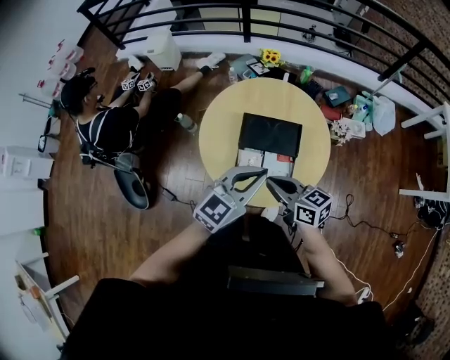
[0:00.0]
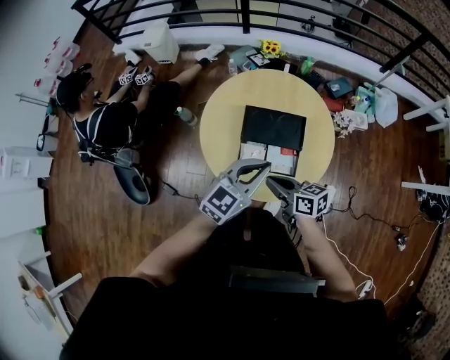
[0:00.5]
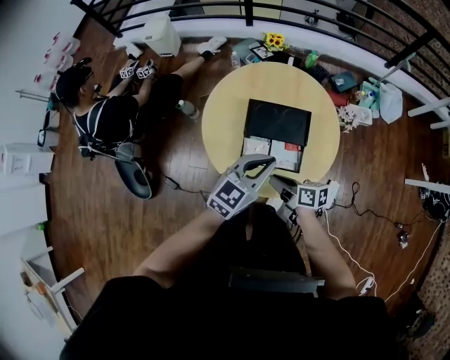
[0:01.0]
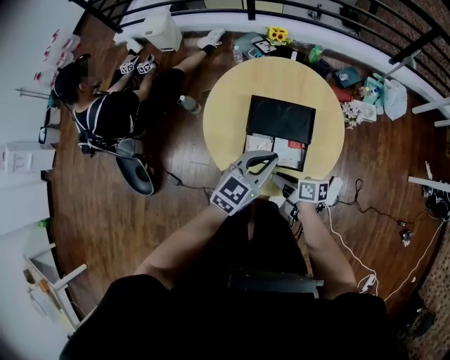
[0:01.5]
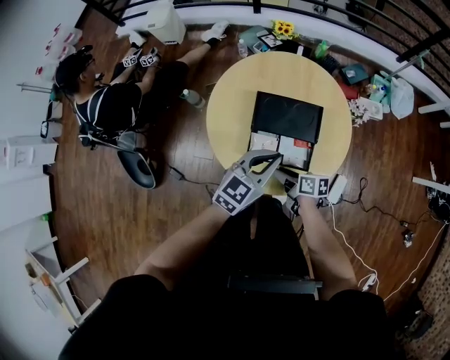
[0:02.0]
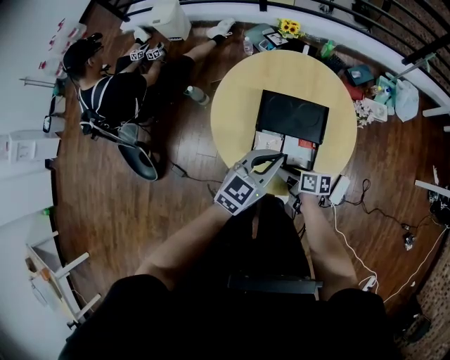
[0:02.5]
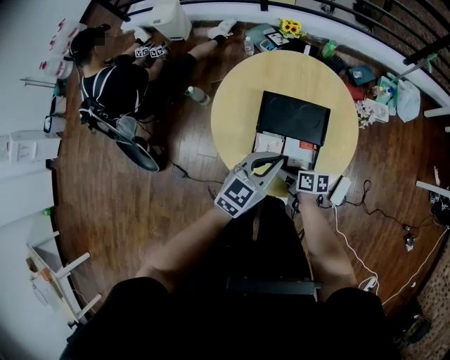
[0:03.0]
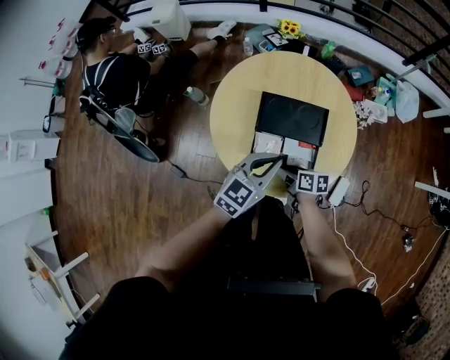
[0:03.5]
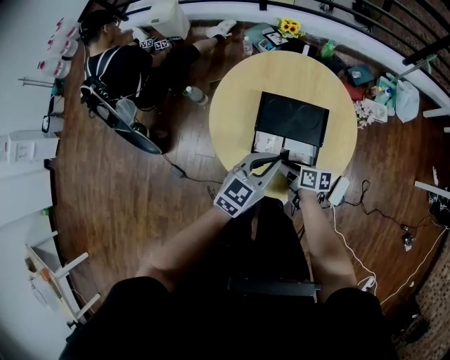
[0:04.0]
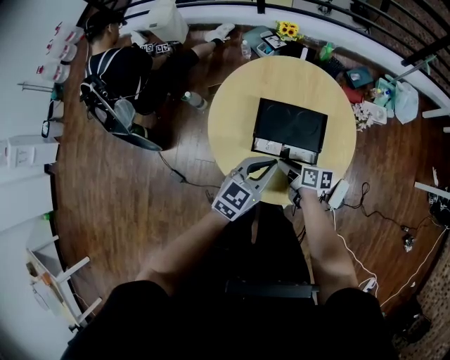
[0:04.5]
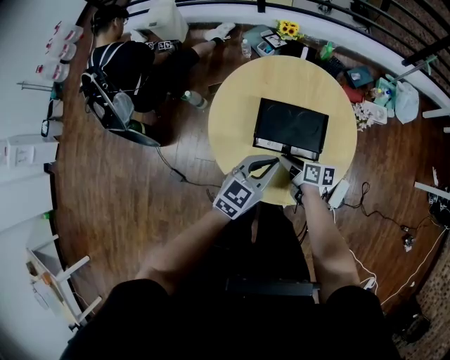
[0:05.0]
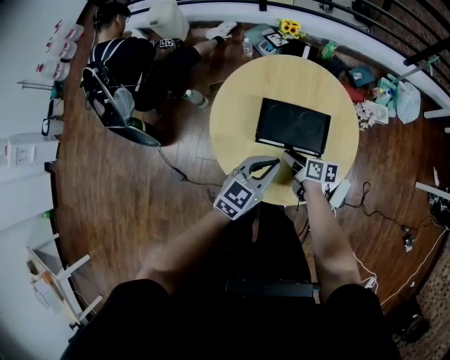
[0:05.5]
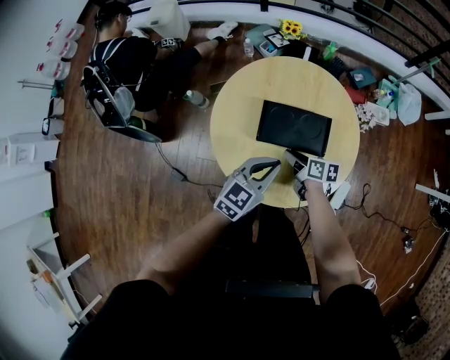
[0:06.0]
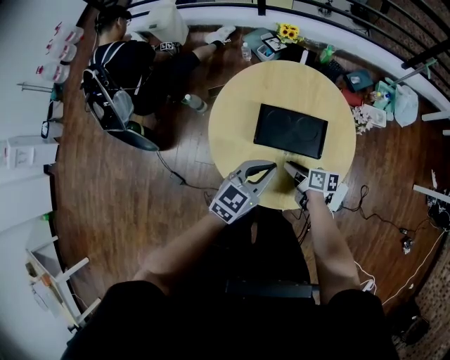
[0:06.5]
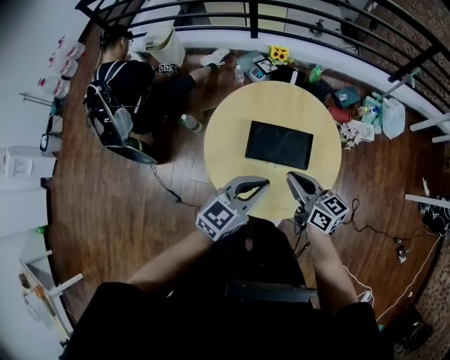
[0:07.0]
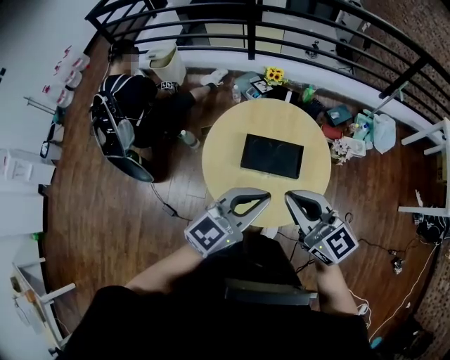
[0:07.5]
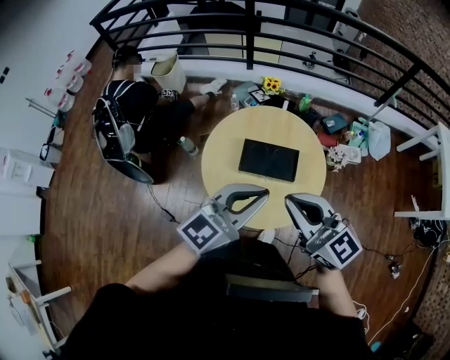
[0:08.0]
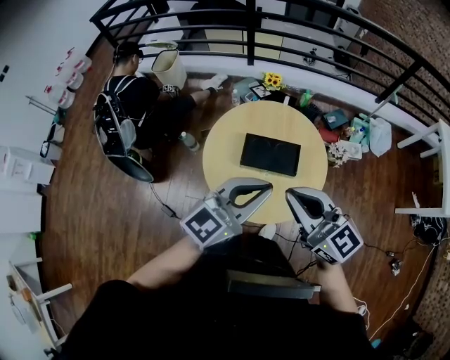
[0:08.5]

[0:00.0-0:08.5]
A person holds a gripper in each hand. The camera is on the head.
0:00.0 to 0:02.0: The left gripper is displaced downward by about 15 cm. The right gripper goes roughly 25 cm downward, changes its angle by roughly 40 degrees, and opens.
0:02.0 to 0:04.0: The right gripper moves some 5 cm.
0:04.0 to 0:06.5: The right gripper is displaced forward by some 5 cm.
0:06.5 to 0:08.5: The right gripper shifts approximately 50 cm upward, rotates around the line of its fingers by roughly 60 degrees, counterclockwise from behind, and closes; the left gripper moves upward and backward, approximately 35 cm, and swivels approximately 20 degrees.

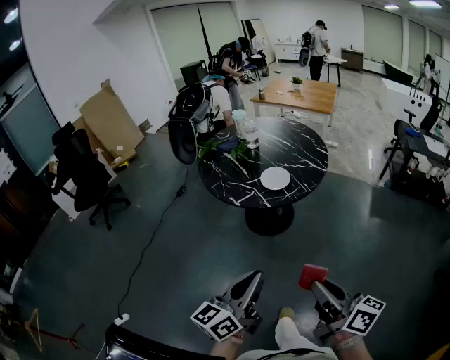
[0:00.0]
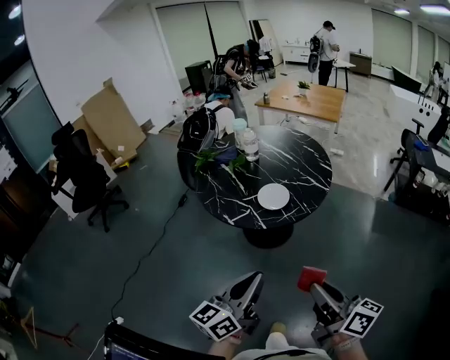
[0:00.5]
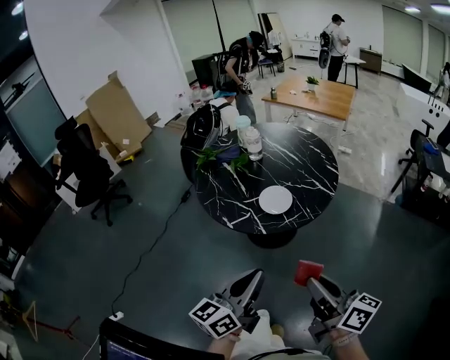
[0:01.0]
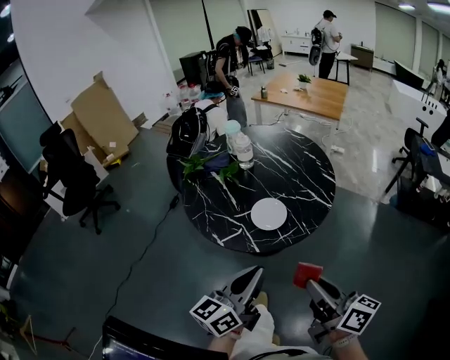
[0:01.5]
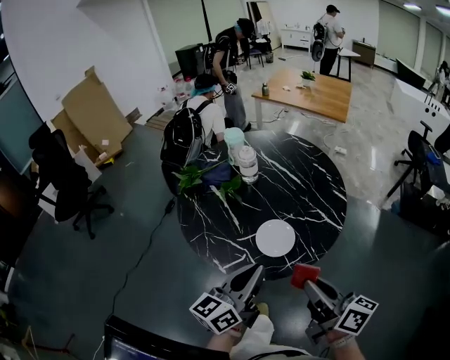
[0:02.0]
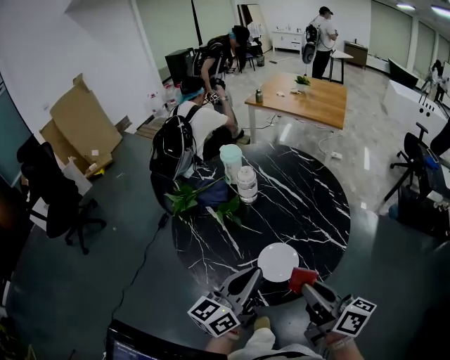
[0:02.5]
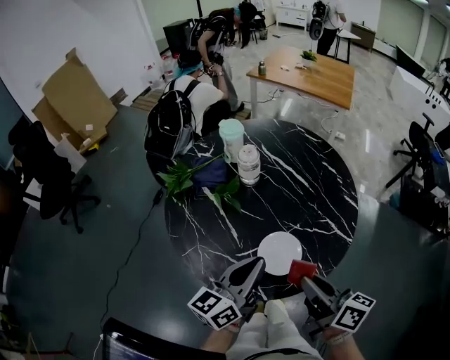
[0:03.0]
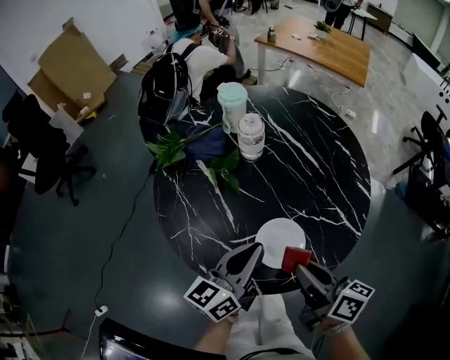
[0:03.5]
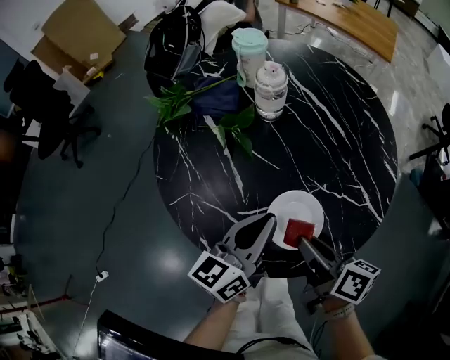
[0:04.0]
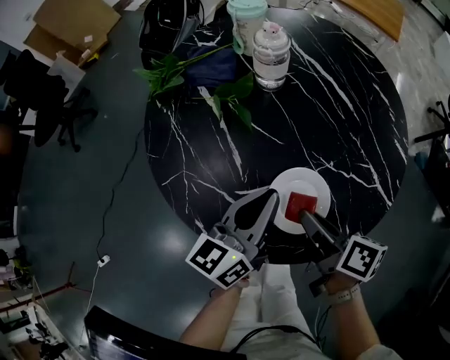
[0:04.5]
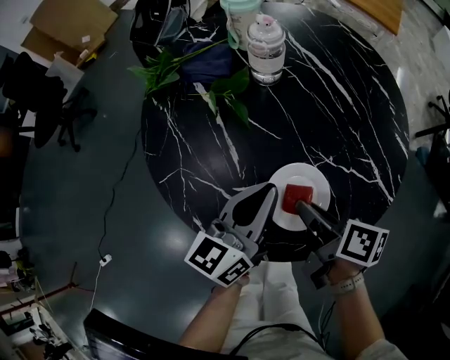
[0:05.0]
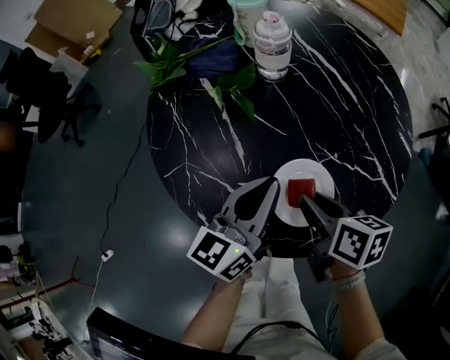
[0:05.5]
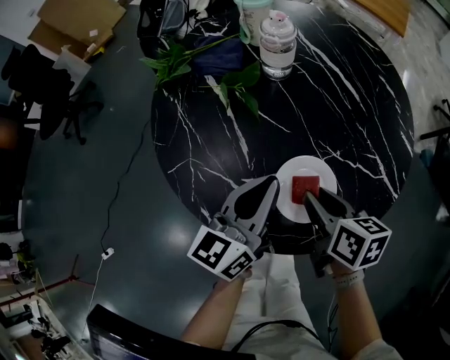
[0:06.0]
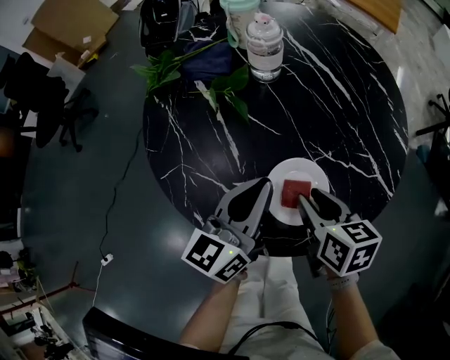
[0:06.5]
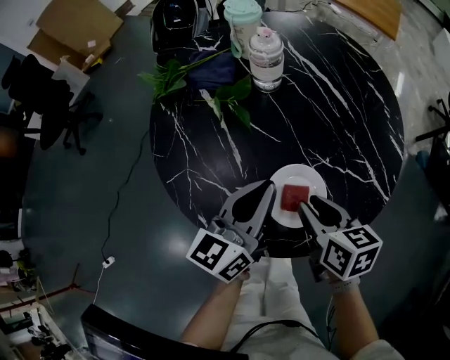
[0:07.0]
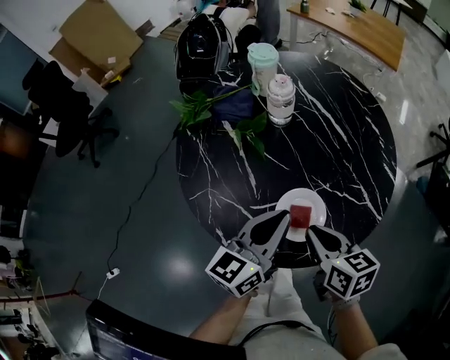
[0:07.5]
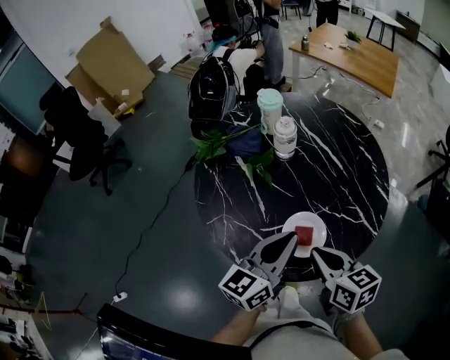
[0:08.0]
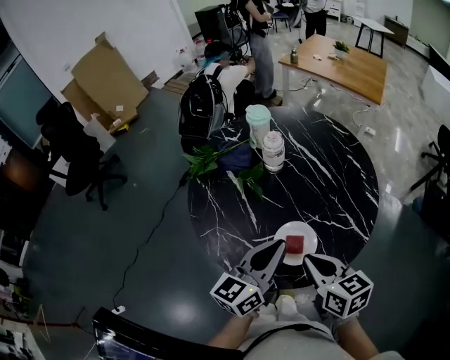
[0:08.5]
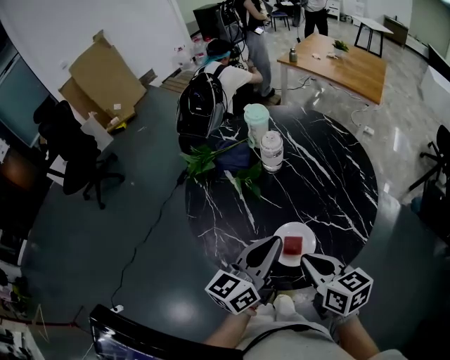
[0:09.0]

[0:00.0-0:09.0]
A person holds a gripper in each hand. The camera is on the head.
0:00.0 to 0:02.0: The grippers both shift forward by approximately 40 cm.
0:02.0 to 0:04.5: The right gripper travels downward and forward by about 30 cm, and turns by approximately 30 degrees. The left gripper shifts approximately 25 cm forward and downward.
0:04.5 to 0:07.0: The right gripper turns by some 30 degrees.
0:07.0 to 0:09.0: The two grippers go roughly 10 cm upward. The right gripper closes its fingers.

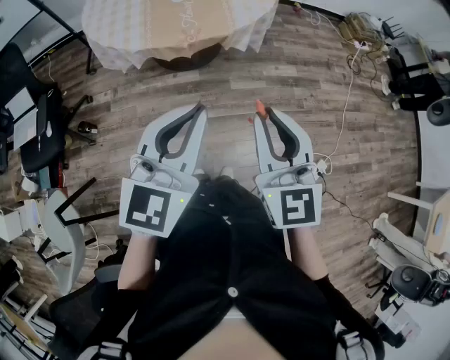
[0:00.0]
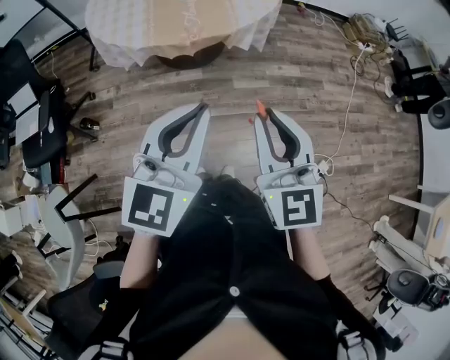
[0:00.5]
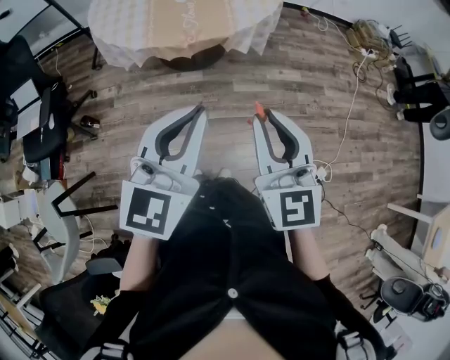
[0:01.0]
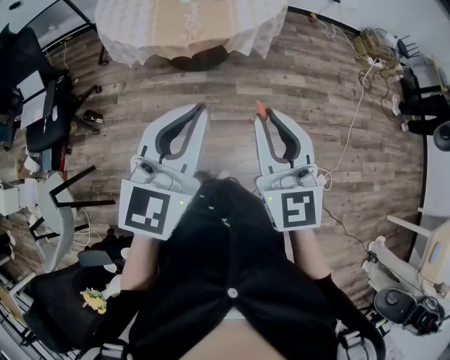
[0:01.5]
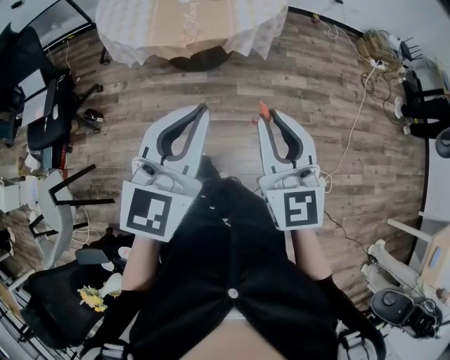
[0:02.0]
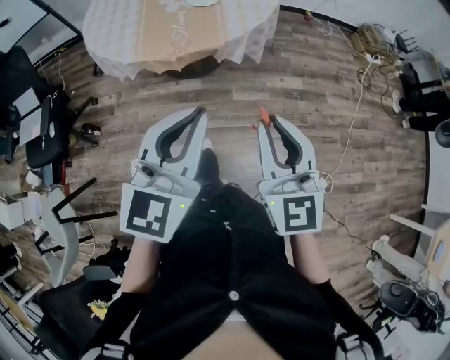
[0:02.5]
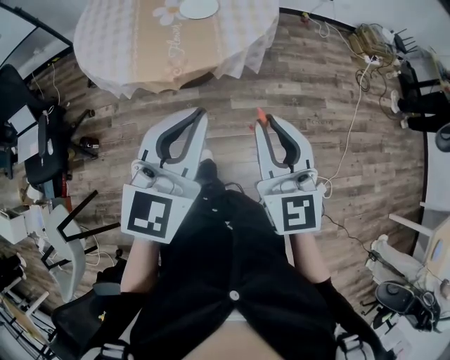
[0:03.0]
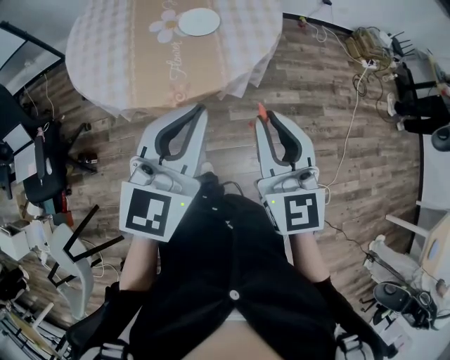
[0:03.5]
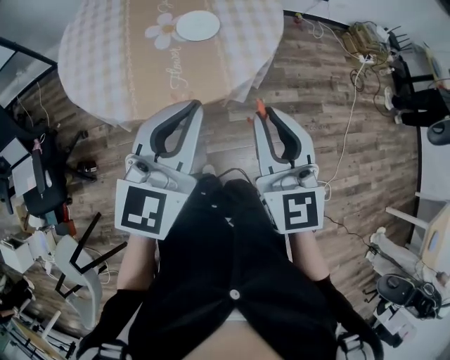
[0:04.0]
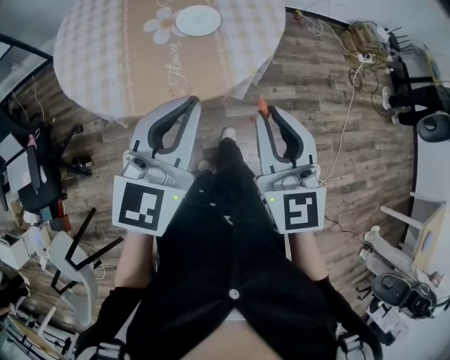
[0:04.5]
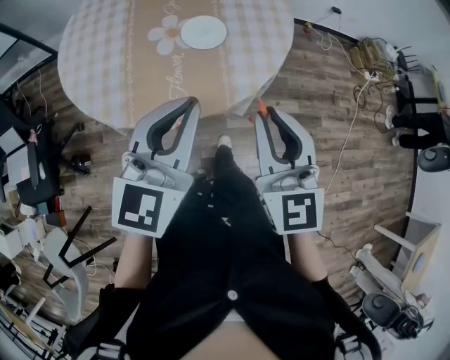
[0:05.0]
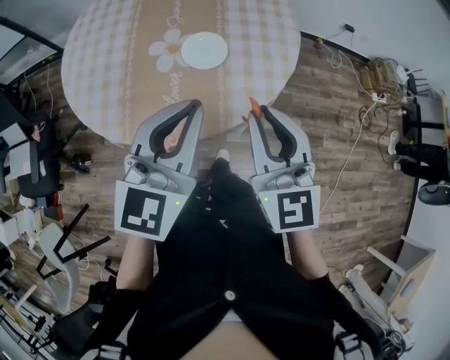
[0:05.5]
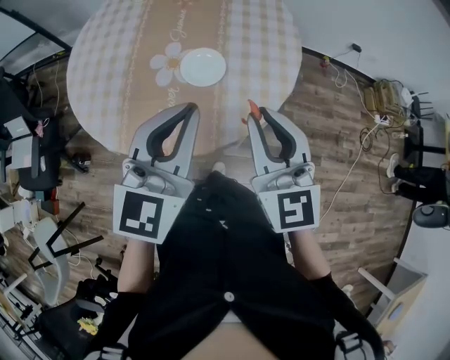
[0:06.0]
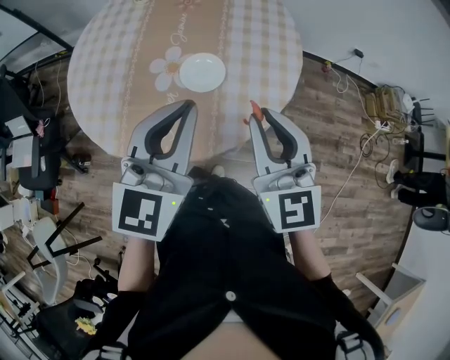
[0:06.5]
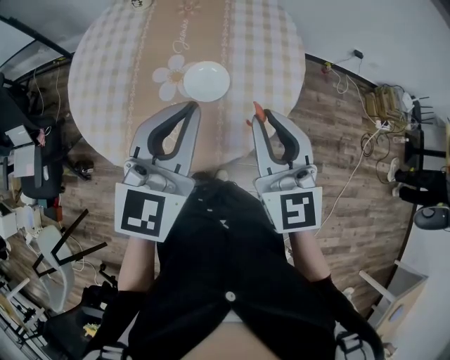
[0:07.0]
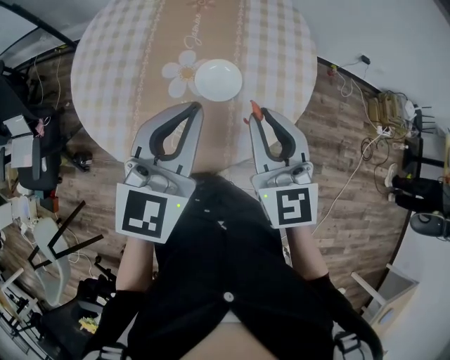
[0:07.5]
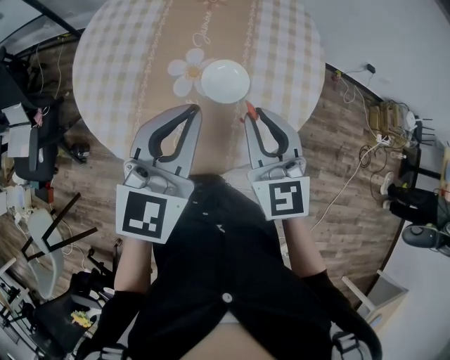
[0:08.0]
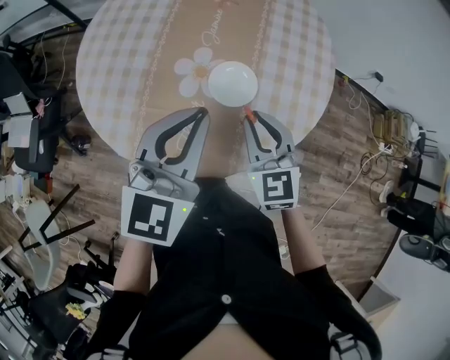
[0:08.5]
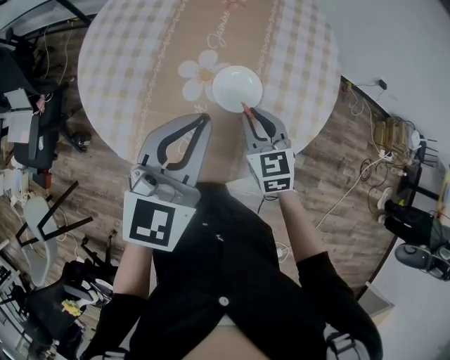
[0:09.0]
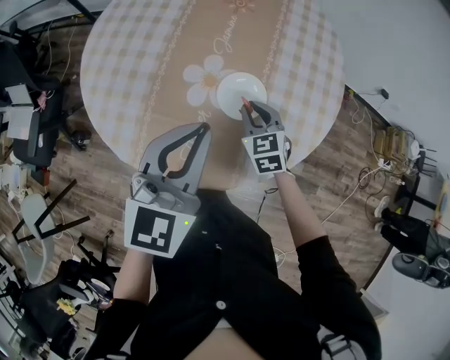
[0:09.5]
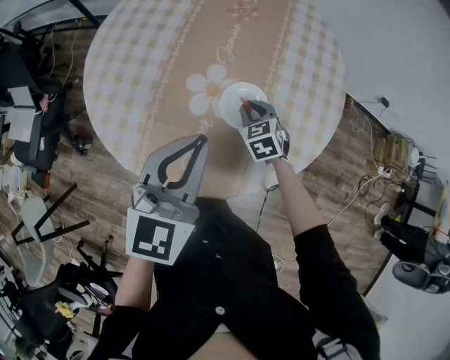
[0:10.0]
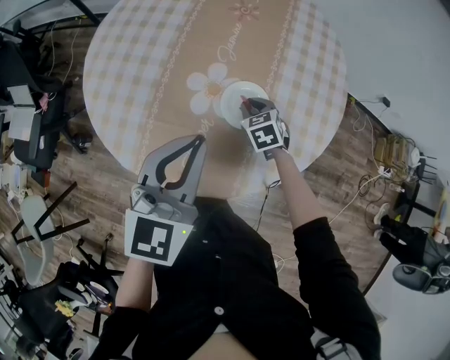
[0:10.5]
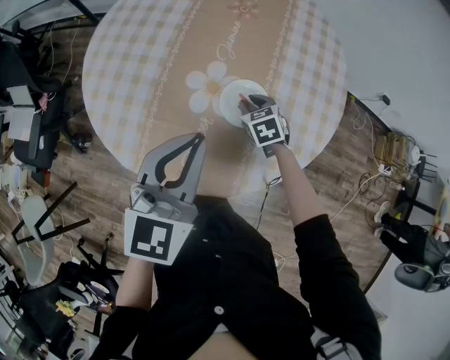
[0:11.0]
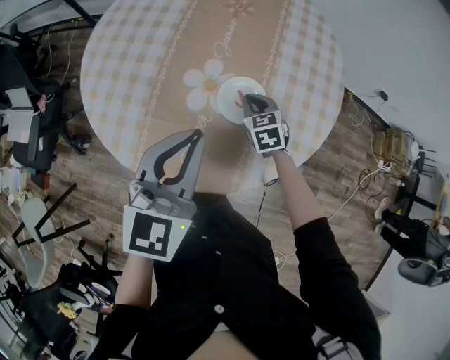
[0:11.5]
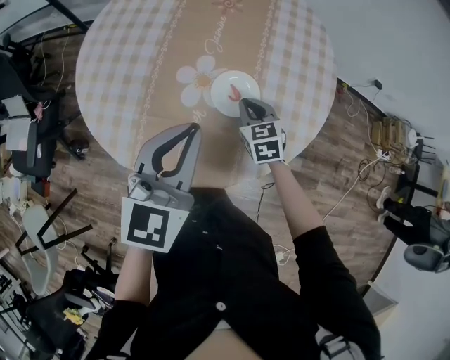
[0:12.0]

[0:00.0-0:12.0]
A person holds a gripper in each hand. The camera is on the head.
0:00.0 to 0:02.0: The grippers both shift to the right by approximately 10 cm.
0:02.0 to 0:04.0: Both grippers travel together forward, about 30 cm.
0:04.0 to 0:06.0: Both grippers travel together forward, some 15 cm.
0:06.0 to 0:08.0: The left gripper is displaced forward and to the left by approximately 10 cm. The right gripper heads forward, to the left and downward, covering roughly 15 cm.
0:08.0 to 0:10.0: The left gripper moves approximately 5 cm; the right gripper travels downward and forward by approximately 30 cm, and tips its fingers downward by roughly 30 degrees.
0:10.0 to 0:12.0: The grippers make only small movements.
